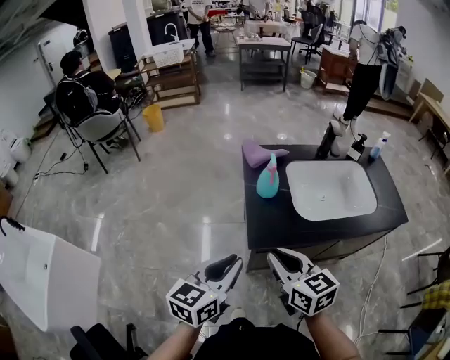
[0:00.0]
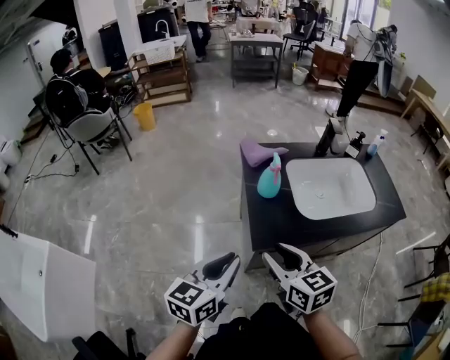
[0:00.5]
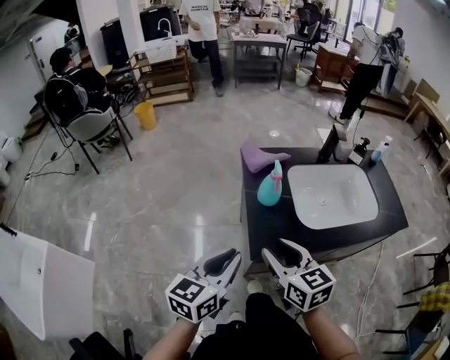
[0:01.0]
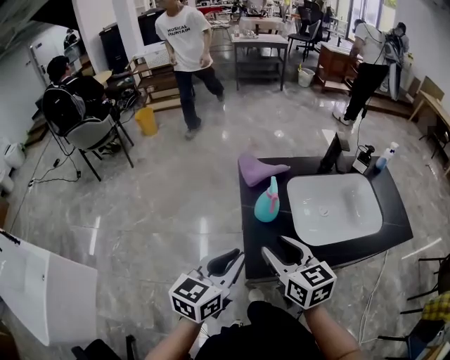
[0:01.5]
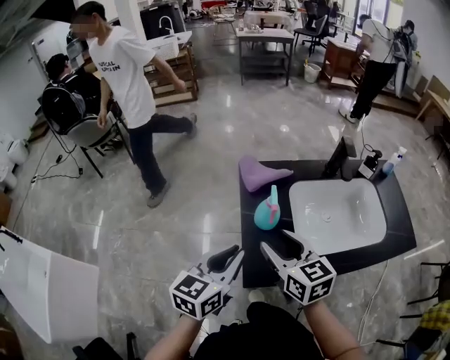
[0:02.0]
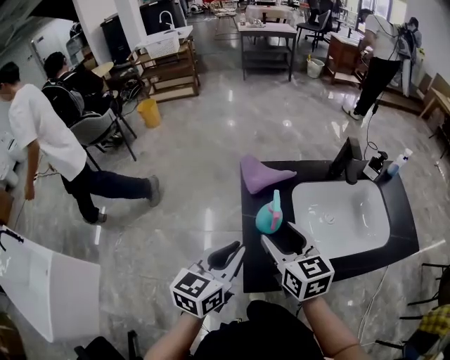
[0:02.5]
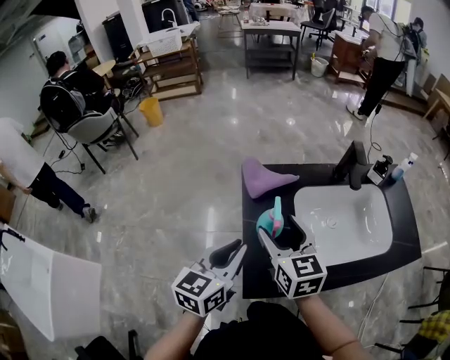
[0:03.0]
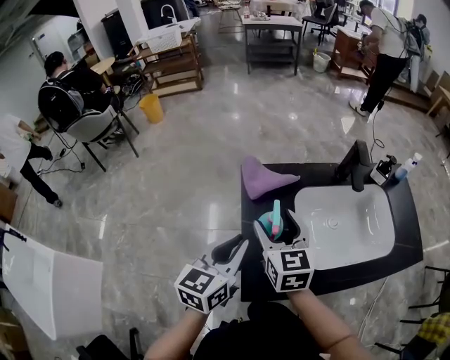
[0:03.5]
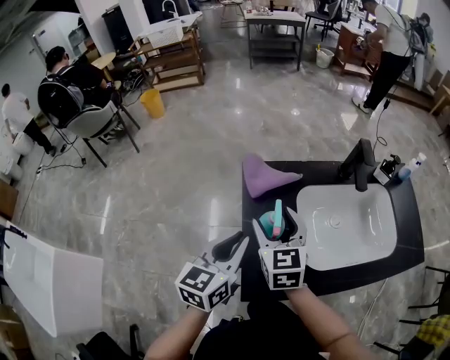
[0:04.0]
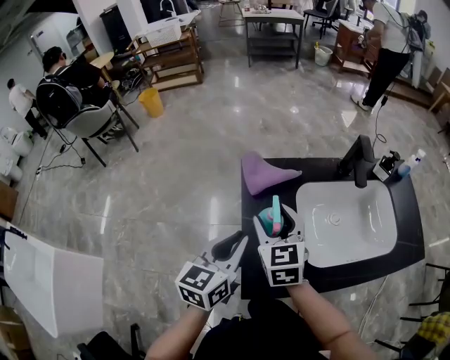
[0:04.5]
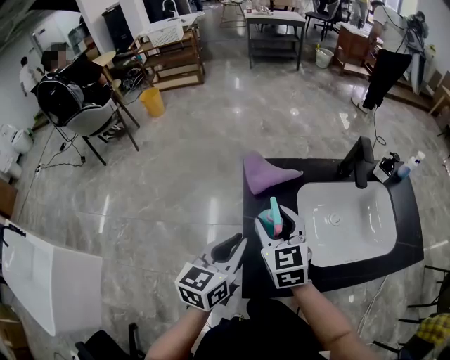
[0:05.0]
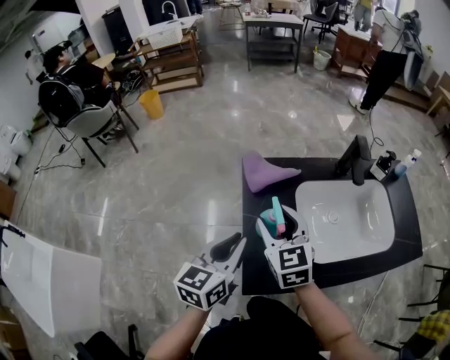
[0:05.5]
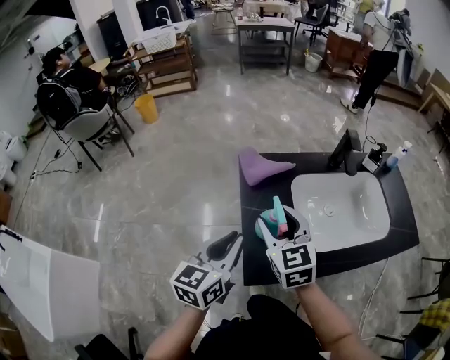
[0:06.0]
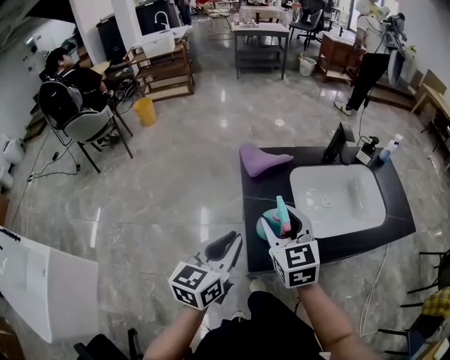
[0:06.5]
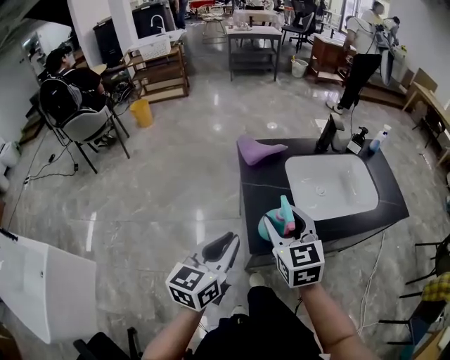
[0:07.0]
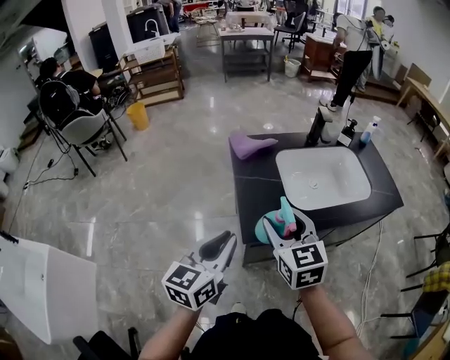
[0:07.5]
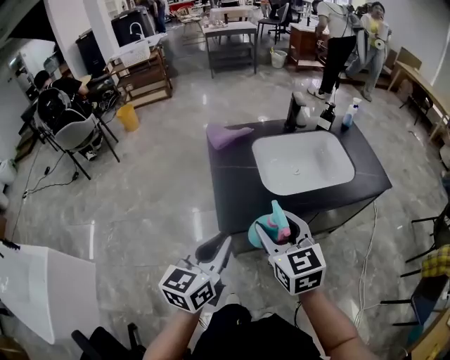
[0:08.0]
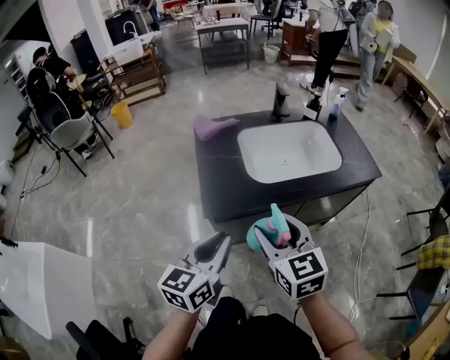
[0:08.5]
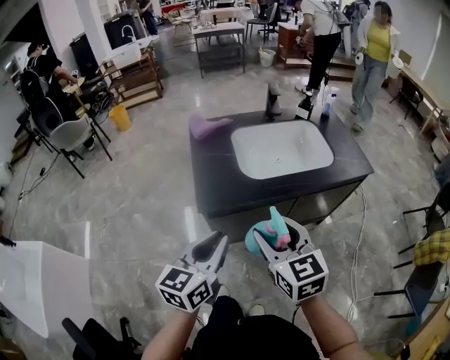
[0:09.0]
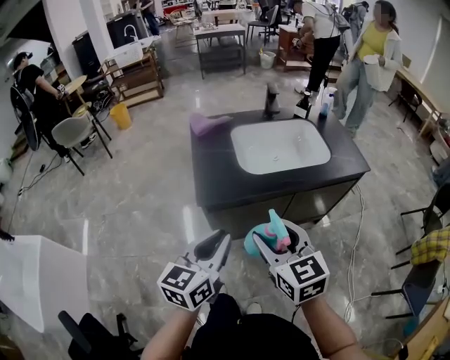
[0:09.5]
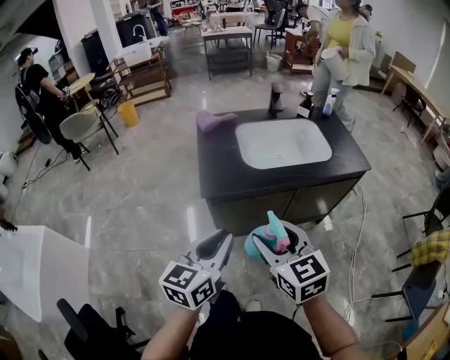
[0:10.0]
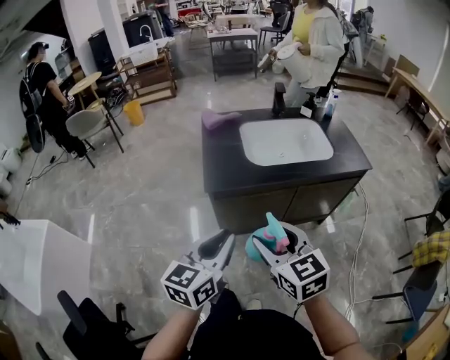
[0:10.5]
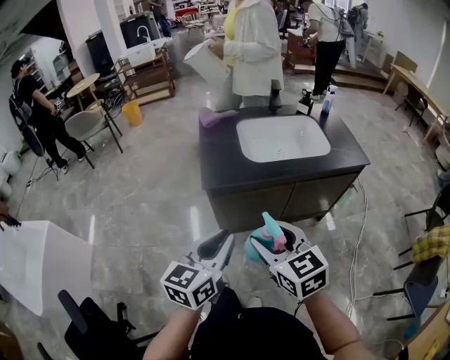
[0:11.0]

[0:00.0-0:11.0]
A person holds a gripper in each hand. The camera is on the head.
0.0 to 2.0 s: The two grippers go roughly 20 cm forward. The right gripper opens.
2.0 to 3.5 s: Both grippers move forward, about 10 cm.
3.5 to 5.5 s: The grippers make only small movements.
5.5 to 7.5 s: Both grippers move backward, about 20 cm.
7.5 to 9.0 s: Both grippers travel together to the right and backward, approximately 20 cm.
9.0 to 11.0 s: Both grippers move backward, roughly 10 cm.

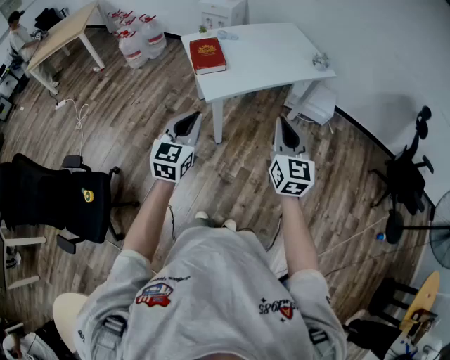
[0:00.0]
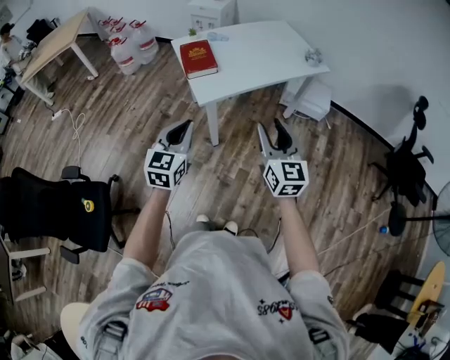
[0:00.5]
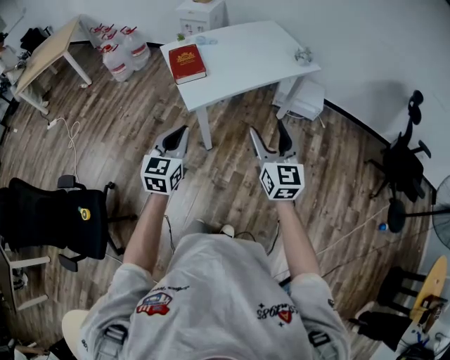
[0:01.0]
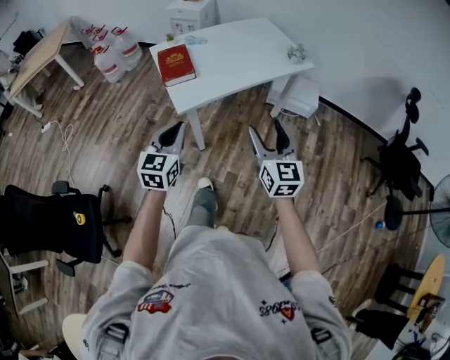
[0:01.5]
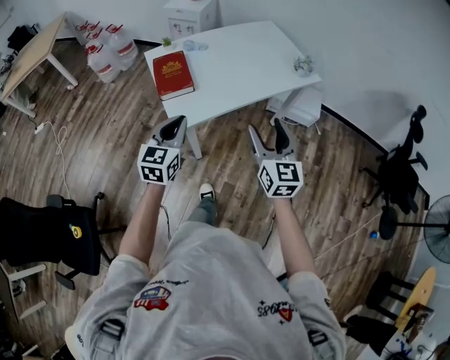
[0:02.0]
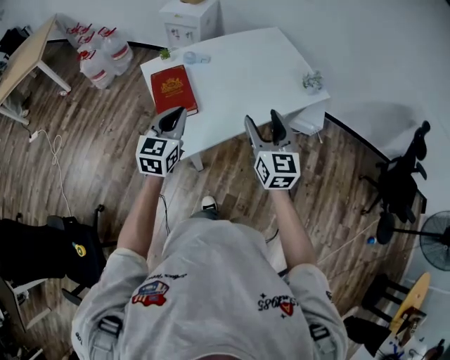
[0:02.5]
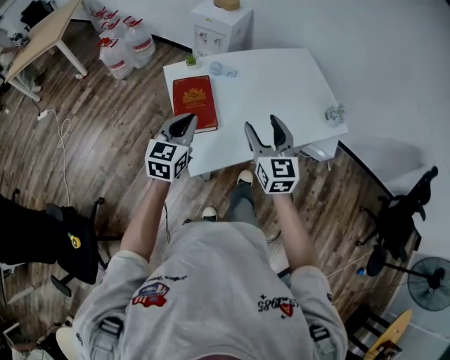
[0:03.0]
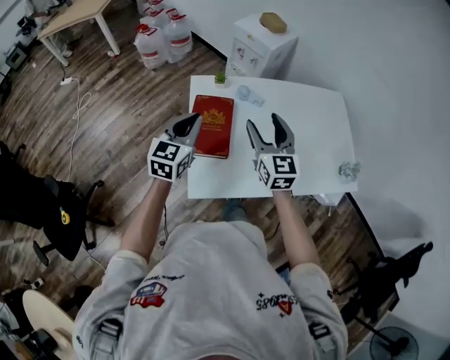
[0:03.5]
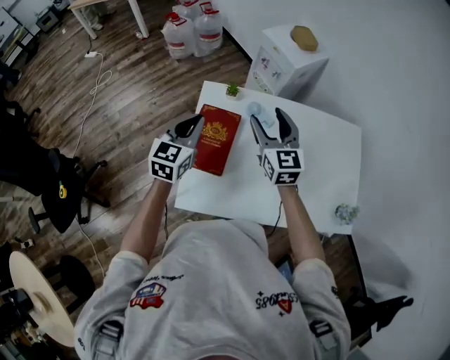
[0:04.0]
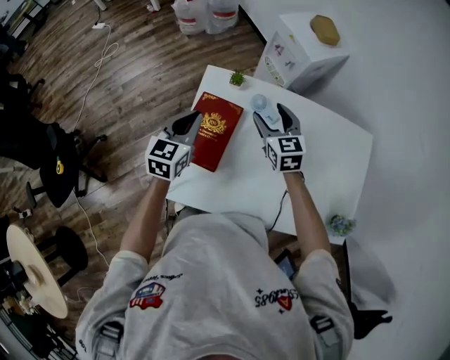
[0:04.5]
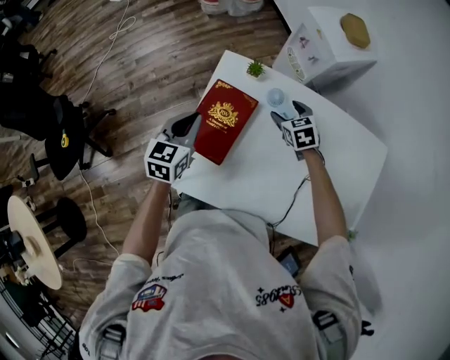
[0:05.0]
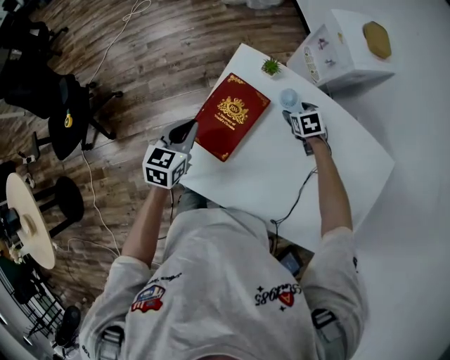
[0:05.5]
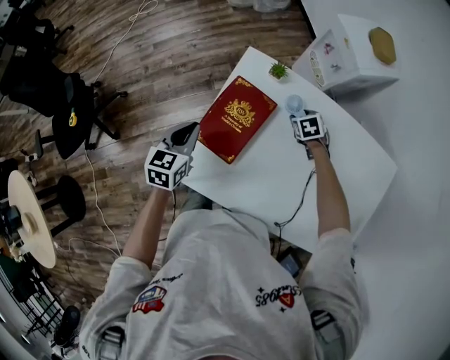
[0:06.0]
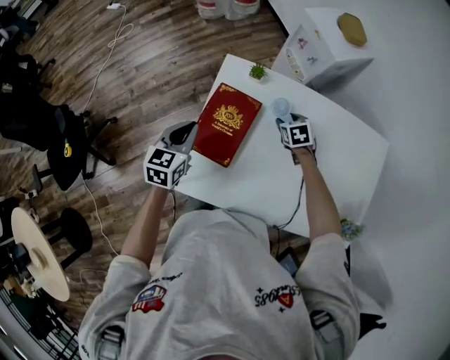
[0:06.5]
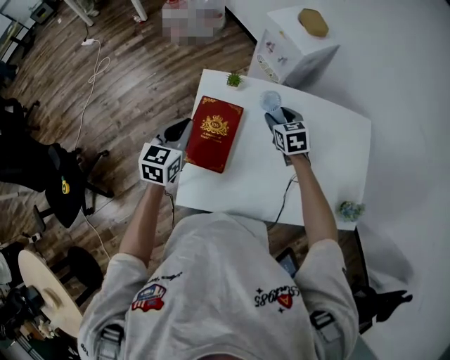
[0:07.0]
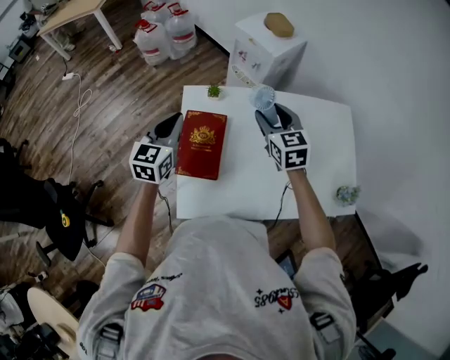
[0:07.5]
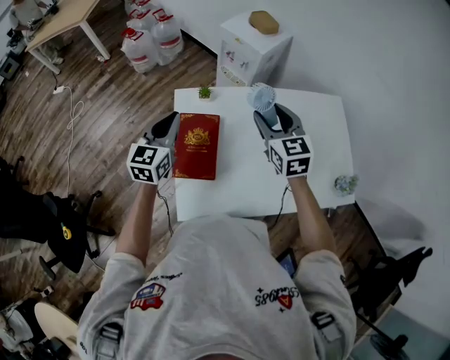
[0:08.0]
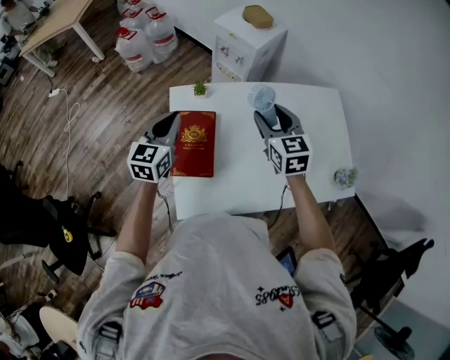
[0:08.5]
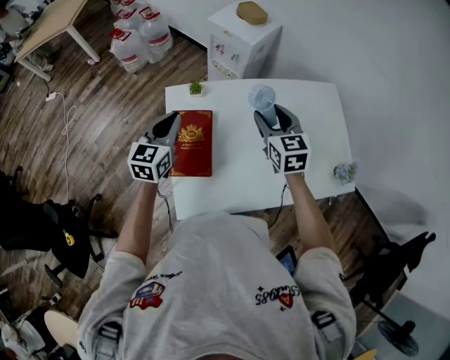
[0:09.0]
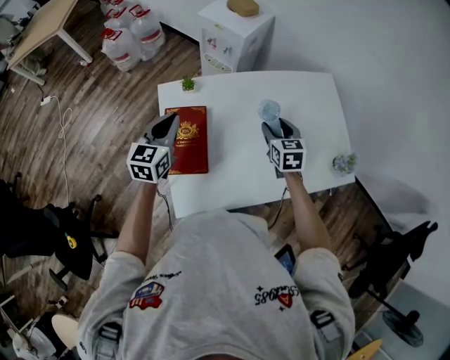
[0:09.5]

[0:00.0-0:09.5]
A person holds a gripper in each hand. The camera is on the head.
0.0 to 2.0 s: The grippers both shift forward by approximately 20 cm. The right gripper opens its fingers.
2.0 to 4.0 s: The two grippers travel together, roughly 50 cm. The right gripper rotates roughly 40 degrees. Meanwhile the left gripper changes its angle by roughly 30 degrees.
4.0 to 5.5 s: The left gripper travels downward by some 15 cm, and changes its angle by approximately 30 degrees. Meanwhile the right gripper travels downward and forward by some 35 cm, and points its fingers some 50 degrees further downward.
5.5 to 7.5 s: The right gripper shifts some 30 cm upward, and tips its fingers upward by roughly 40 degrees; the left gripper shifts about 15 cm upward, and changes its angle by approximately 30 degrees.
7.5 to 9.5 s: The right gripper moves to the right, downward and backward, about 20 cm, and changes its angle by approximately 20 degrees. Meanwhile the left gripper heads to the right, covering some 5 cm.

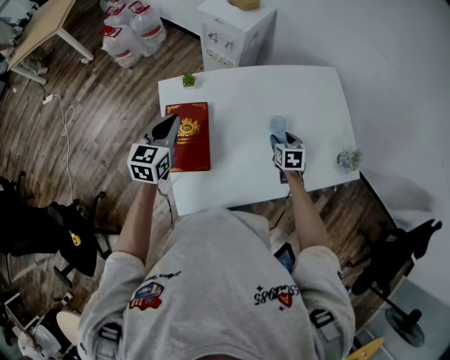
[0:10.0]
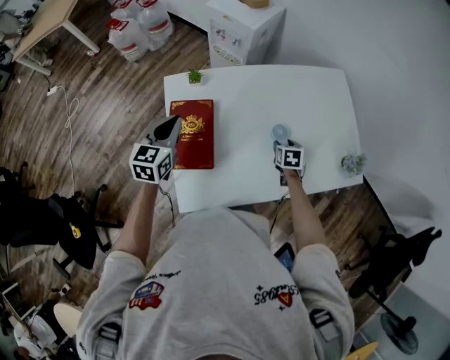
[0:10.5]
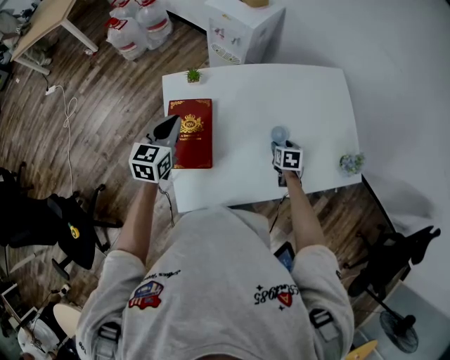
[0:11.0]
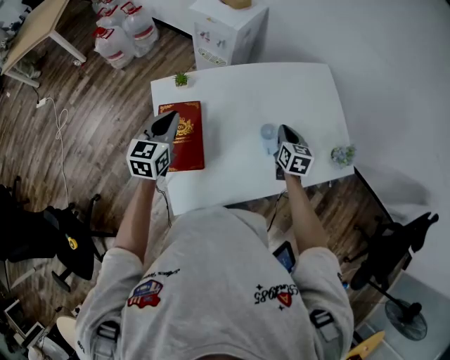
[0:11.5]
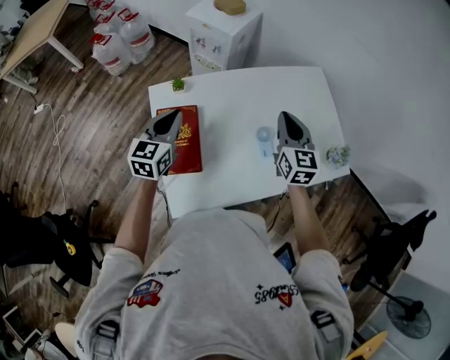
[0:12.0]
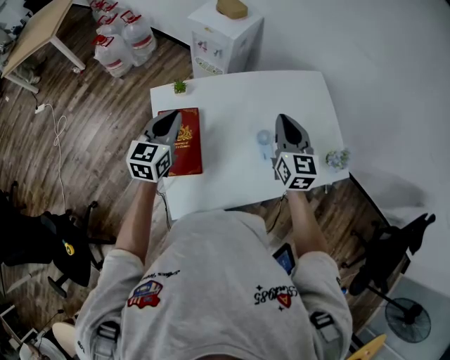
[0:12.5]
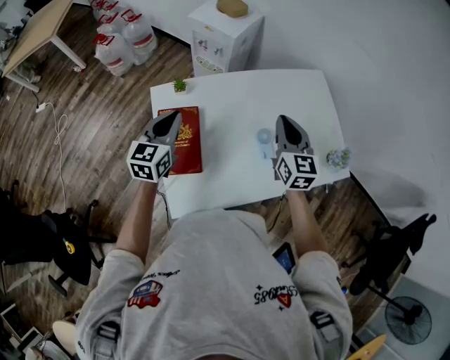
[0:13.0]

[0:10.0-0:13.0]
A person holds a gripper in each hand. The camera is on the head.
10.0 to 11.5 s: The right gripper heads upward, covering roughly 5 cm, and closes.
11.5 to 13.0 s: The right gripper is displaced upward by approximately 15 cm, and turns by some 20 degrees.

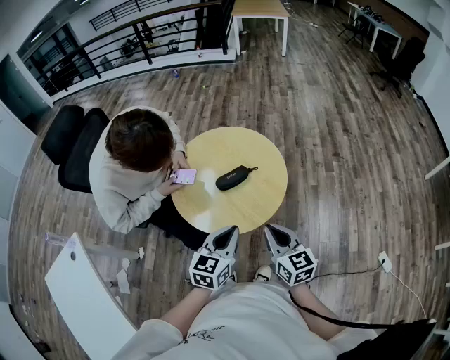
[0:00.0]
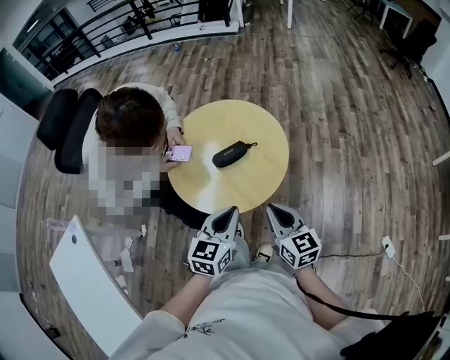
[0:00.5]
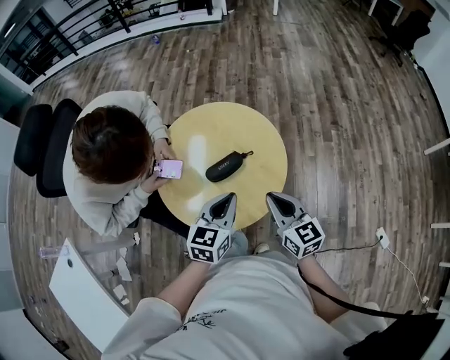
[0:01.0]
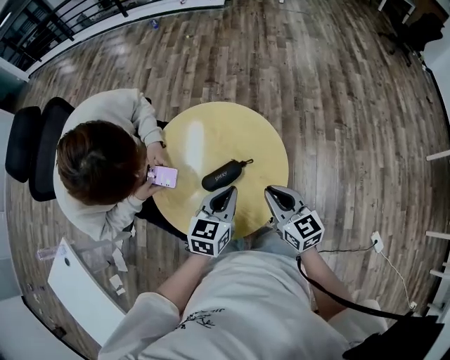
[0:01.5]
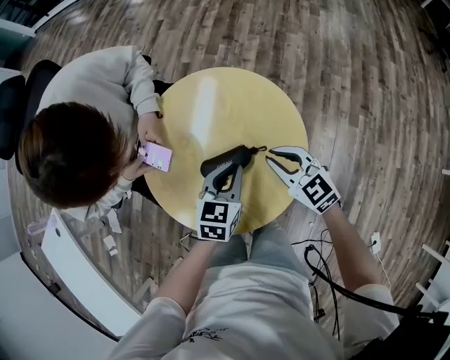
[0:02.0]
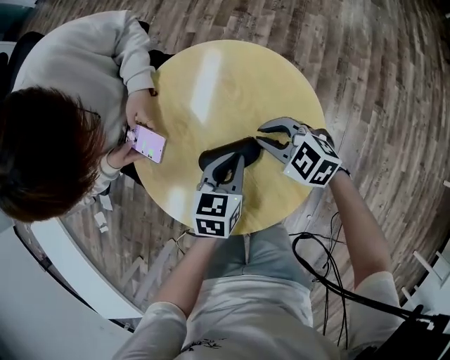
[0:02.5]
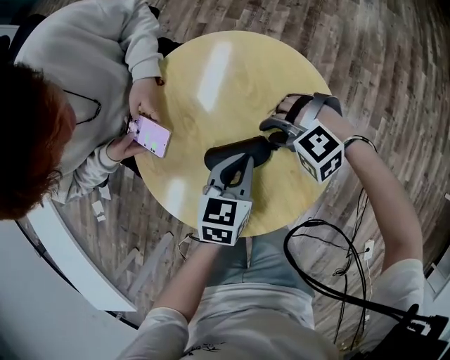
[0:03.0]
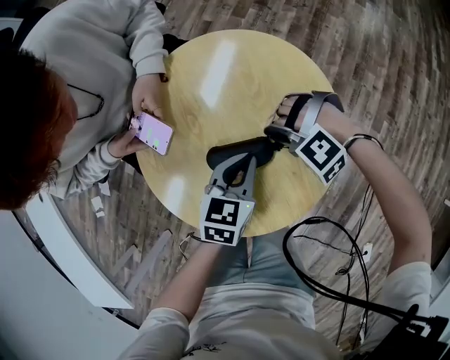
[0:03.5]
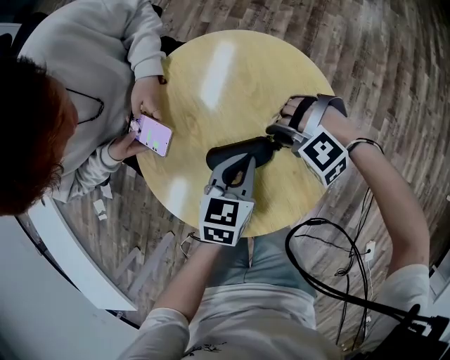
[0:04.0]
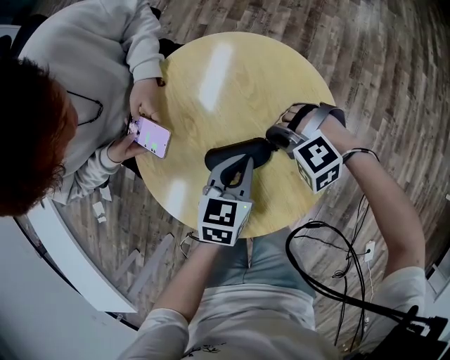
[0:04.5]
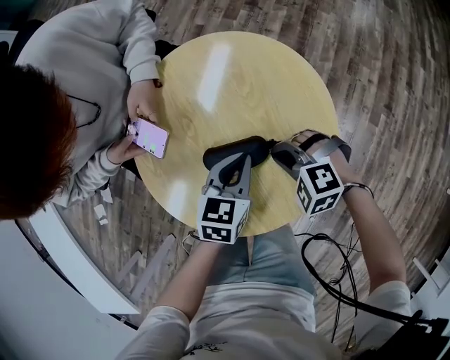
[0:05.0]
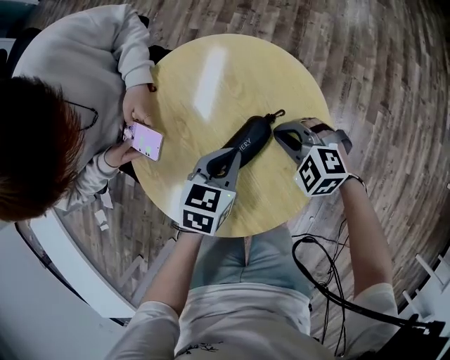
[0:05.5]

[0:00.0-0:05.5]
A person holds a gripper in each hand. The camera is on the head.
0.0 to 2.0 s: The grippers both shift forward and downward by approximately 35 cm. The right gripper swivels some 40 degrees.
2.0 to 3.5 s: The left gripper goes roughly 10 cm downward; the right gripper travels downward by about 15 cm, and rolls counterclockwise, seen from behind, by about 80 degrees.
3.5 to 5.5 s: The right gripper rolls clockwise, seen from behind, by roughly 50 degrees.
